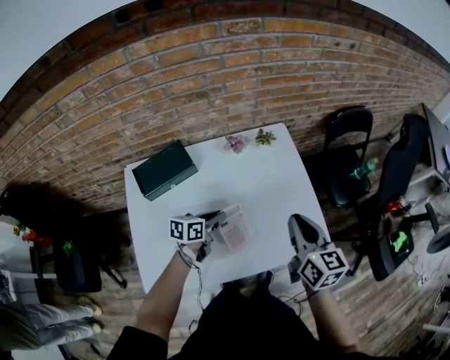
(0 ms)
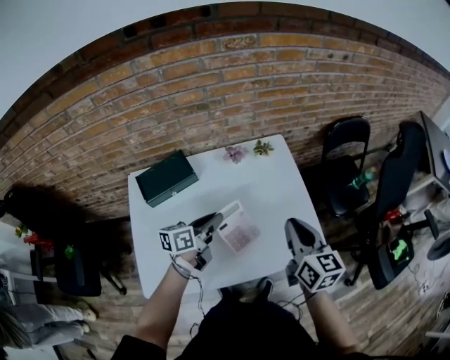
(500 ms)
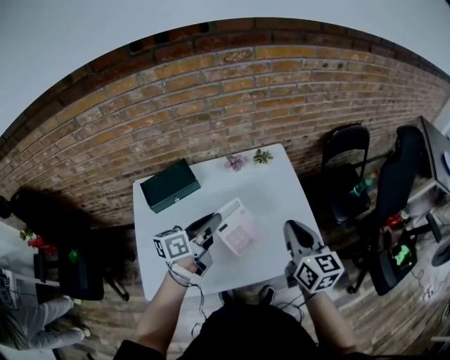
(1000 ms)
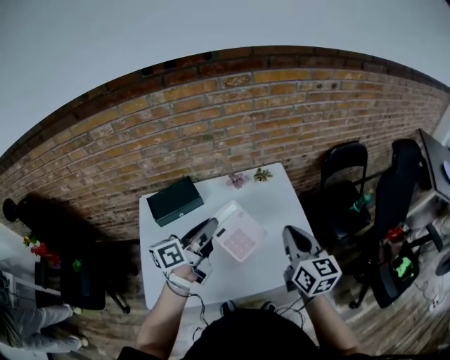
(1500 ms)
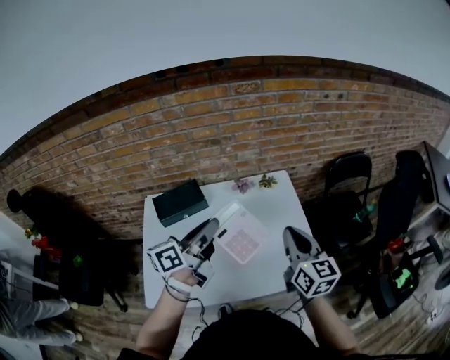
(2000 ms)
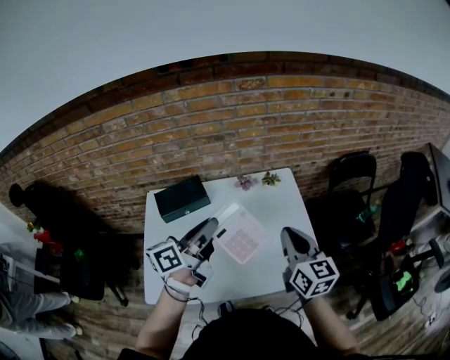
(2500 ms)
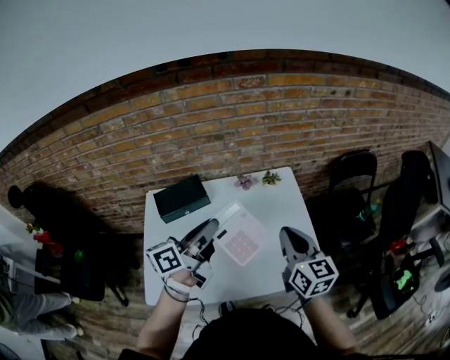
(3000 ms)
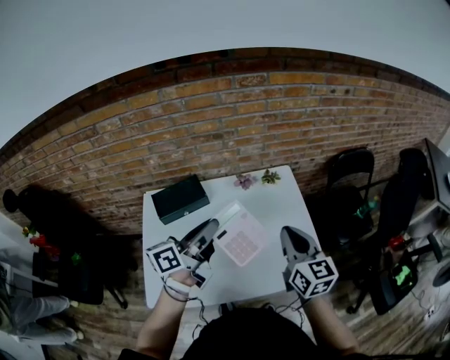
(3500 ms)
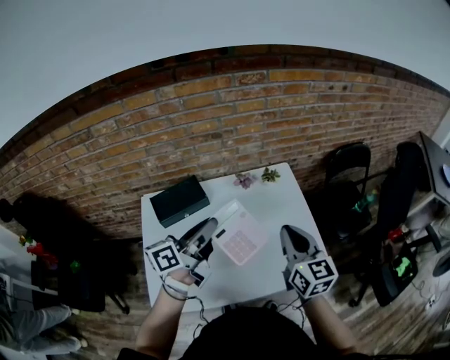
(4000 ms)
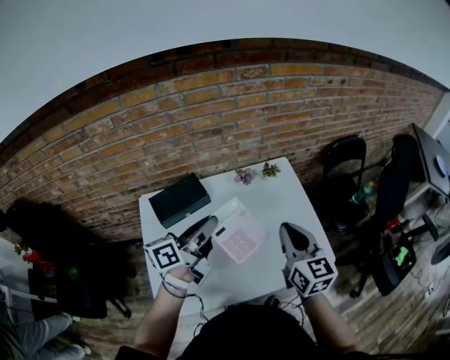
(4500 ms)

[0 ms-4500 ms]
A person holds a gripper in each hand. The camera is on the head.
0 ms to 2000 ms: The right gripper heads upward, covering some 10 cm, while the left gripper heads upward, covering roughly 30 cm, and tips its fingers upward by some 30 degrees.
2000 ms to 4500 ms: The two grippers go some 10 cm to the left.

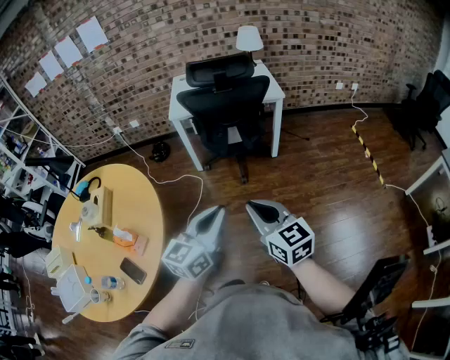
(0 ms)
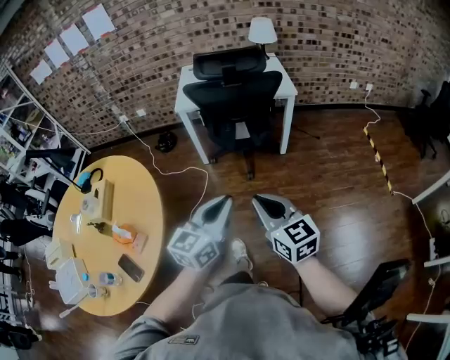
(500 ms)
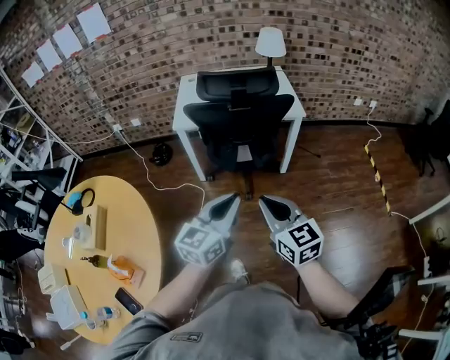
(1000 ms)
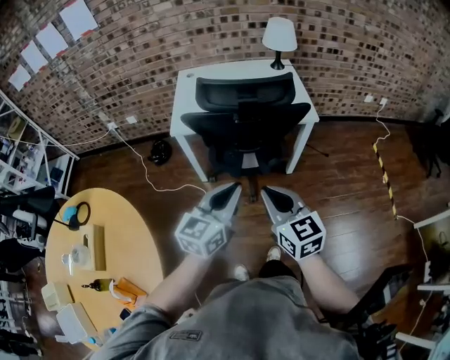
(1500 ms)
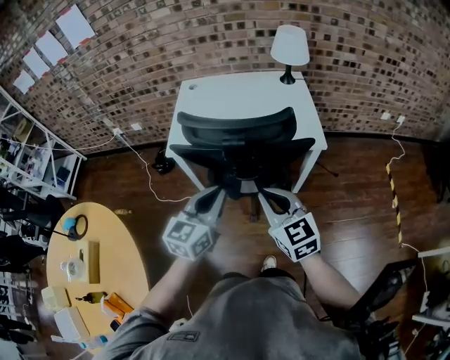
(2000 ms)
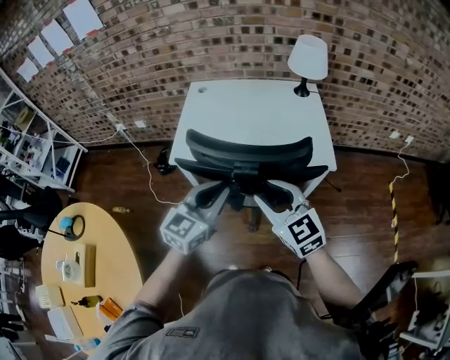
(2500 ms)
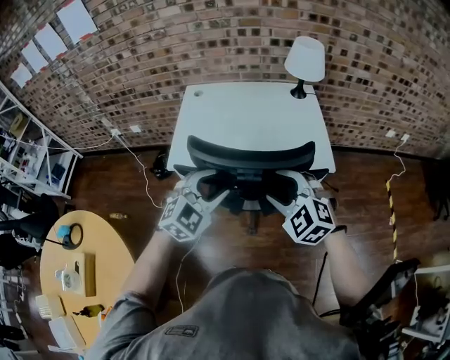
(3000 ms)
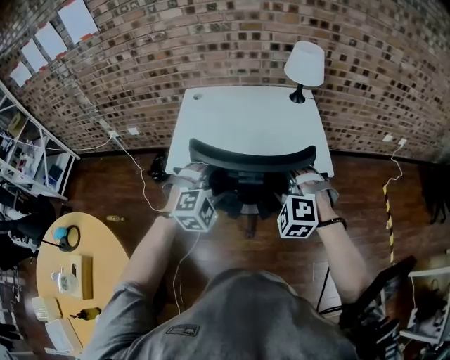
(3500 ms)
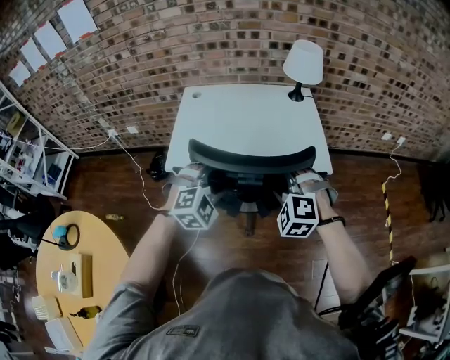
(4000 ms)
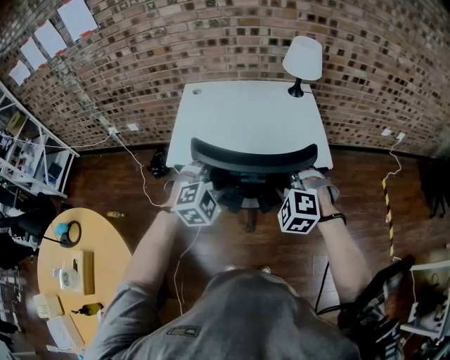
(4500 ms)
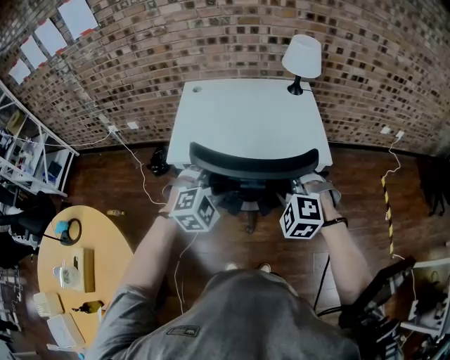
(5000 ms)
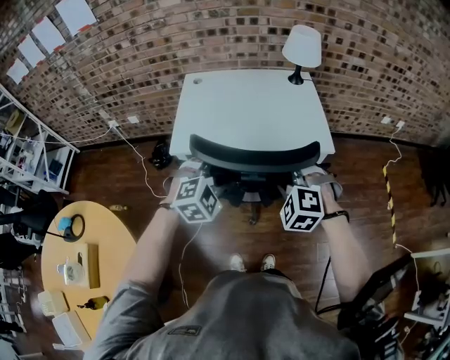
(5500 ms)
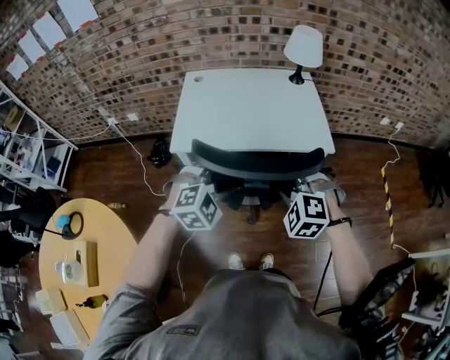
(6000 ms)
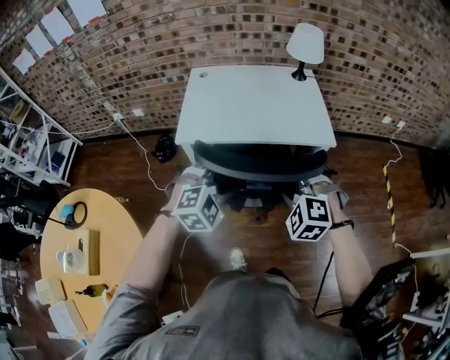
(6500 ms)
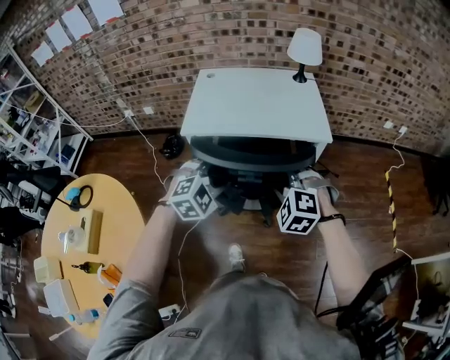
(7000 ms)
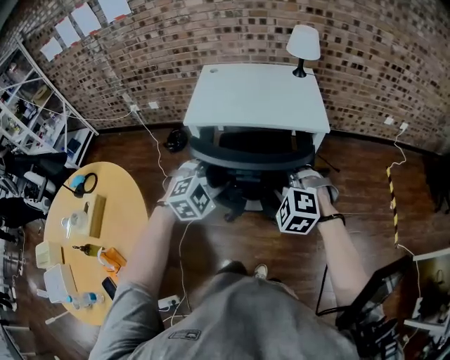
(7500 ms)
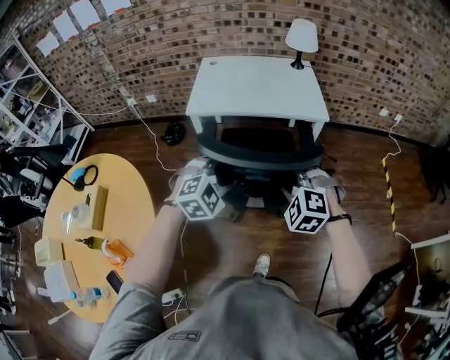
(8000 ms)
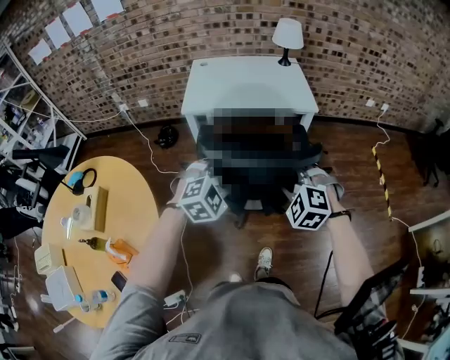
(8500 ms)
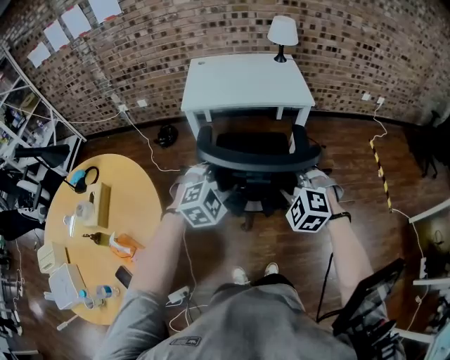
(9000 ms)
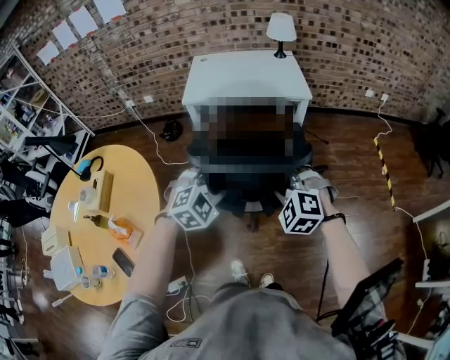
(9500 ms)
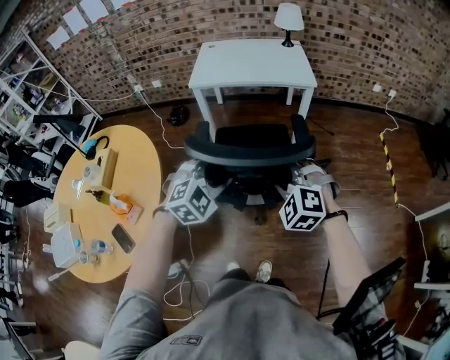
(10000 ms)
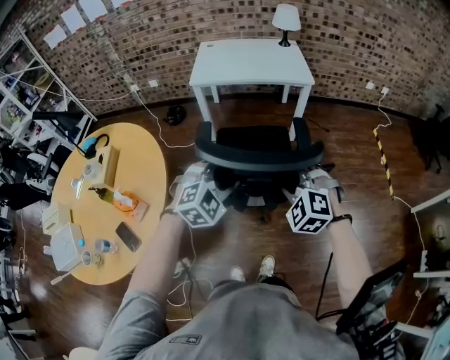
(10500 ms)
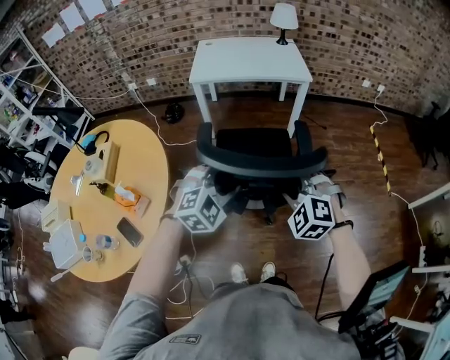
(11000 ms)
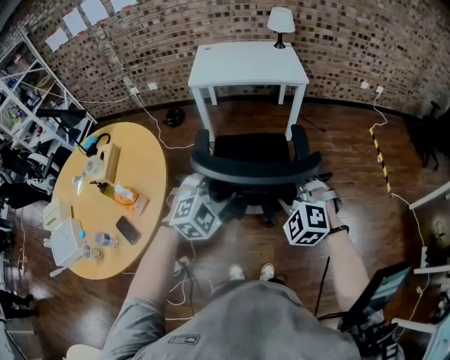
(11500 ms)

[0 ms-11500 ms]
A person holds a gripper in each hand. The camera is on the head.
0 ms to 2000 ms: The pair of grippers is taken forward, roughly 50 cm.
2000 ms to 4000 ms: Both grippers move forward, about 15 cm. The right gripper twists approximately 60 degrees counterclockwise, seen from behind, and opens its fingers; the left gripper twists some 60 degrees clockwise, seen from behind, and opens up.
4000 ms to 6000 ms: The grippers both shift backward by roughly 10 cm.
6000 ms to 7500 ms: The grippers both shift backward by some 15 cm.
7500 ms to 9500 ms: Both grippers move backward, roughly 20 cm.
9500 ms to 11500 ms: The grippers both shift backward by approximately 15 cm.

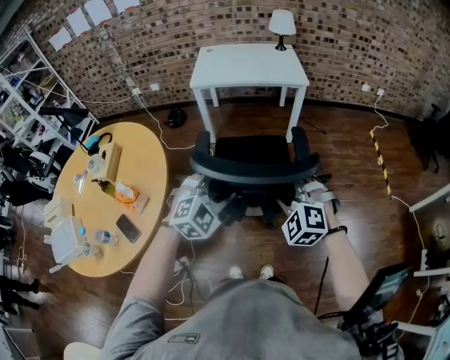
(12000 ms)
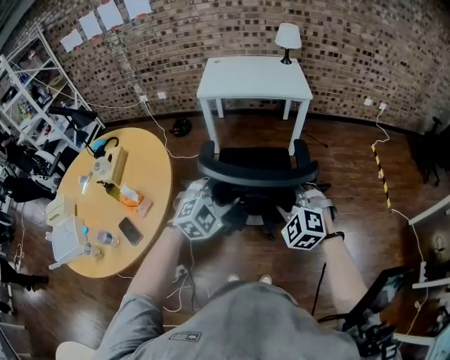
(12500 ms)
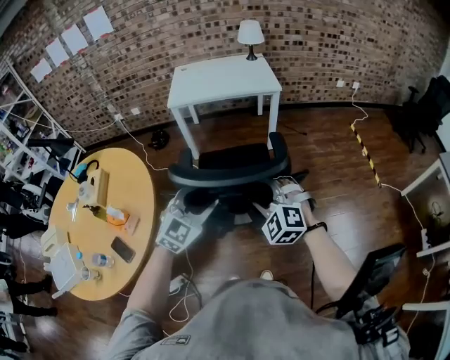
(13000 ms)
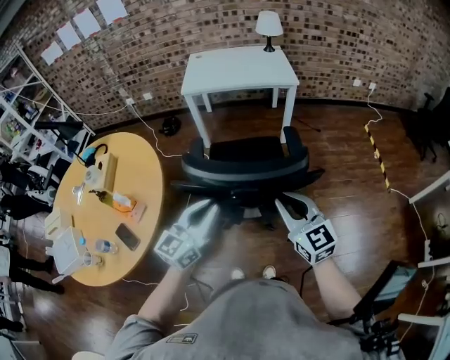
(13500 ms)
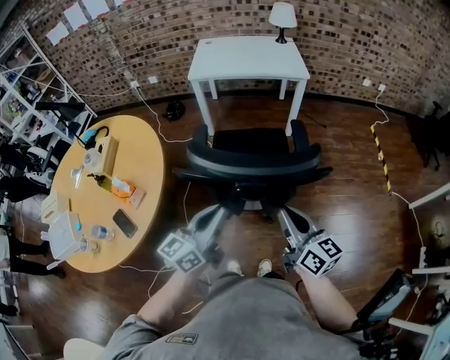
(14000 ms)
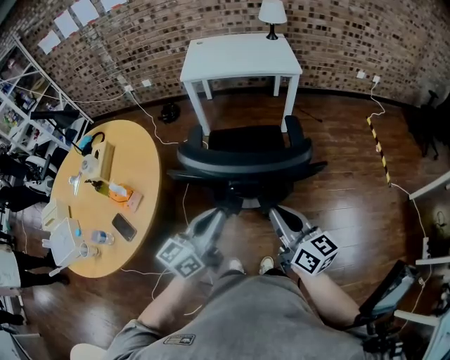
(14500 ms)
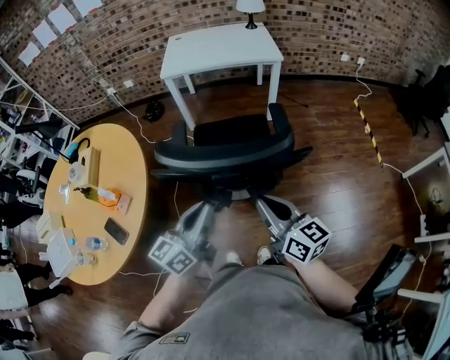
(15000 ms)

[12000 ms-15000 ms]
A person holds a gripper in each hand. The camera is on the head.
12000 ms to 13500 ms: The right gripper changes place by roughly 5 cm, rotates around the line of its fingers by approximately 50 degrees, clockwise from behind, and closes its fingers. The left gripper heads backward, covering roughly 5 cm, twists some 60 degrees counterclockwise, seen from behind, and closes up.
13500 ms to 15000 ms: The right gripper changes its angle by about 30 degrees.

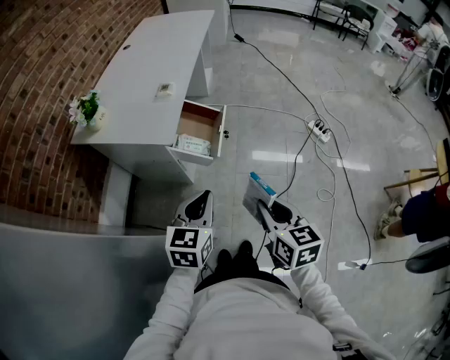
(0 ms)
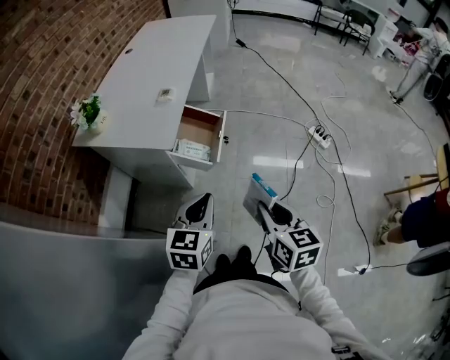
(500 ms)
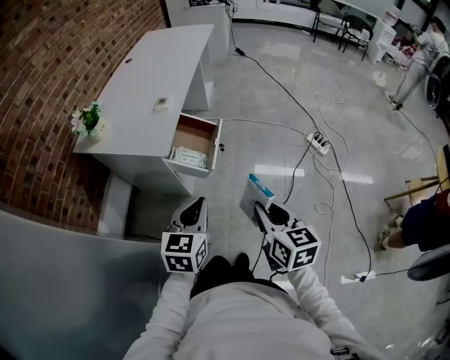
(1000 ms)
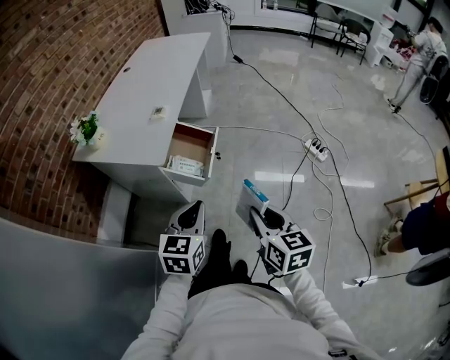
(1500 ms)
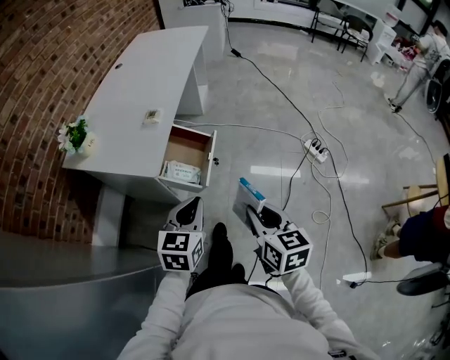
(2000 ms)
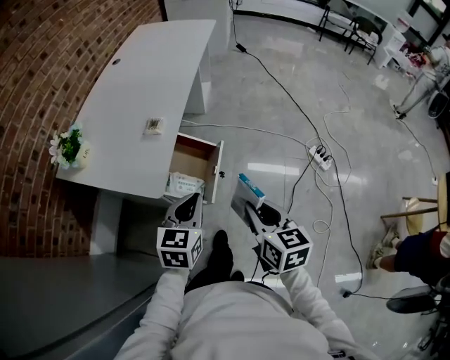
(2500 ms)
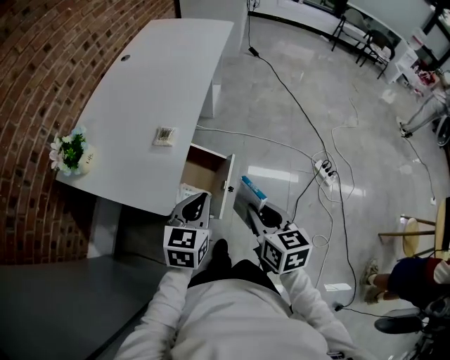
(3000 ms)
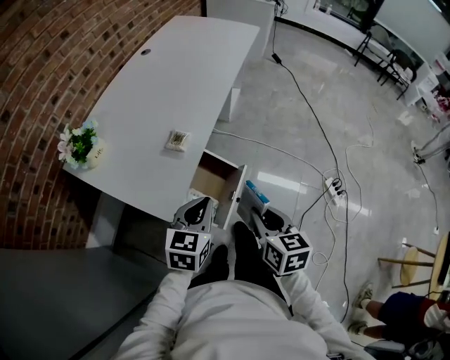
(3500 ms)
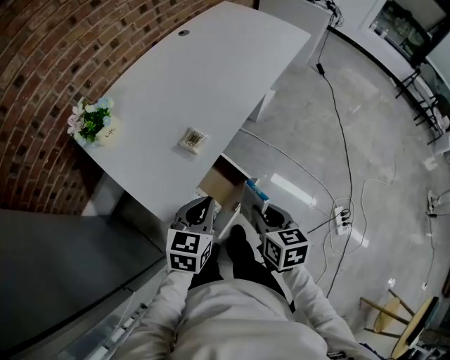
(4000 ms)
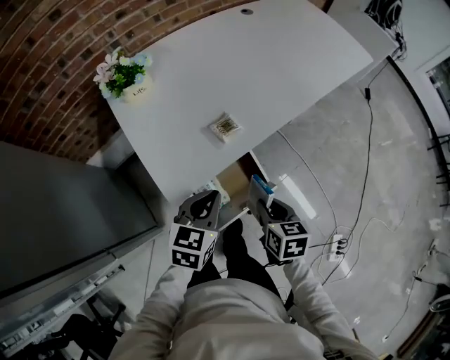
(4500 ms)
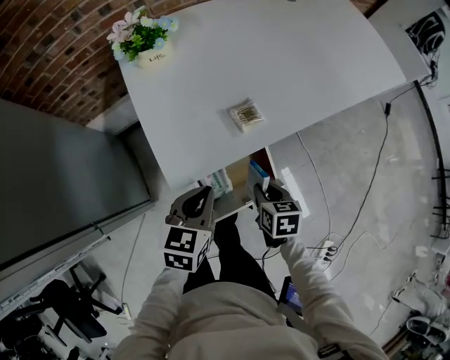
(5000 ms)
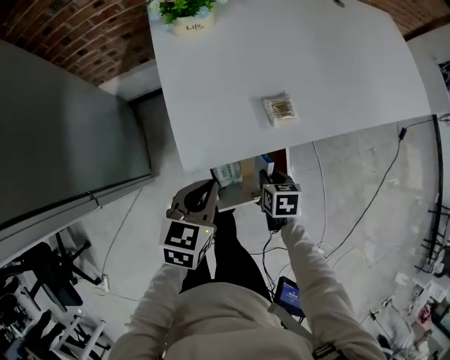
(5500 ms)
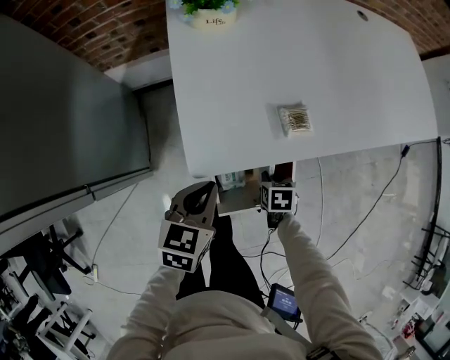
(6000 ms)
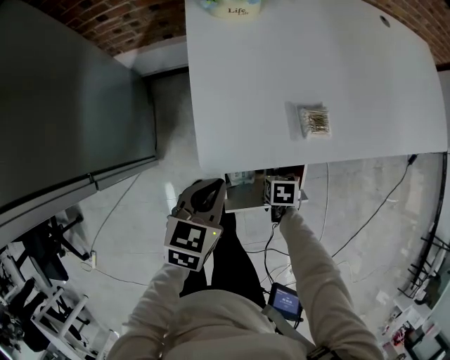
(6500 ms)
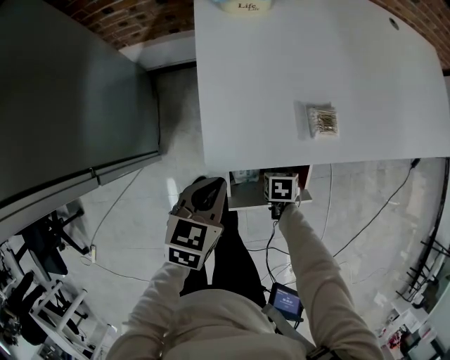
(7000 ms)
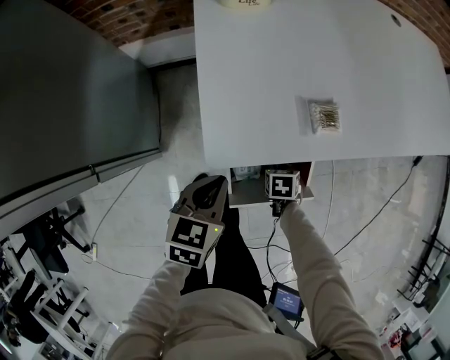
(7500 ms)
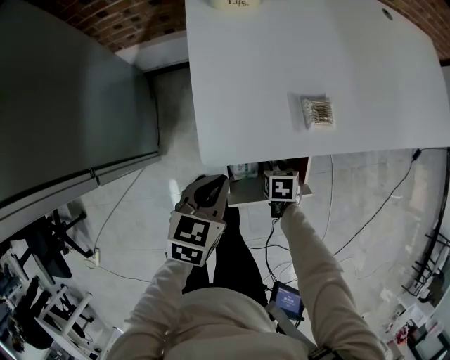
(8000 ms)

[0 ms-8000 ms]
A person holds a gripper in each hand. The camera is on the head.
0 ms to 2000 ms: The two grippers go about 10 cm forward.
2000 ms to 4000 ms: Both grippers move forward, roughly 30 cm. The right gripper rotates approximately 30 degrees; the left gripper changes its angle by about 20 degrees.
4000 ms to 6000 ms: The right gripper travels downward by roughly 25 cm, and angles its fingers downward, by about 30 degrees; the left gripper shifts by approximately 15 cm, and swivels roughly 40 degrees.
6000 ms to 8000 ms: The grippers make only small movements.
